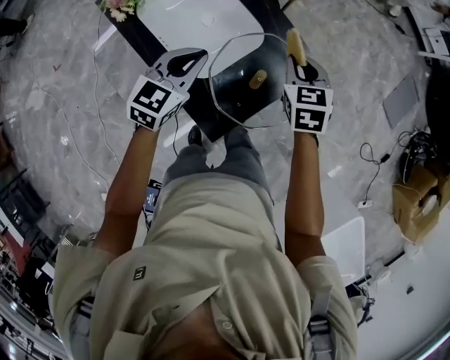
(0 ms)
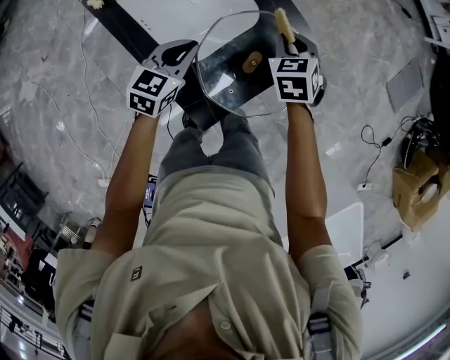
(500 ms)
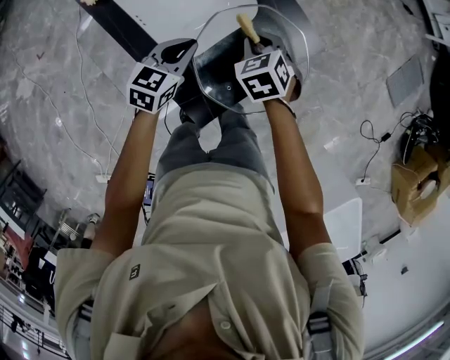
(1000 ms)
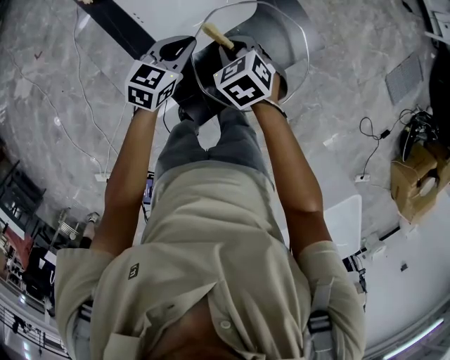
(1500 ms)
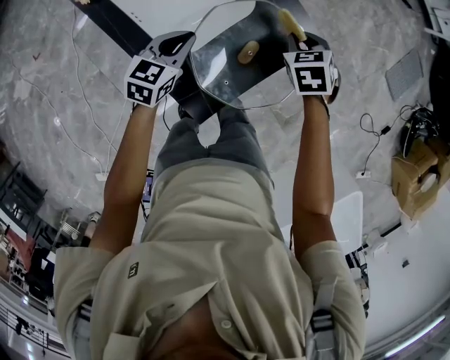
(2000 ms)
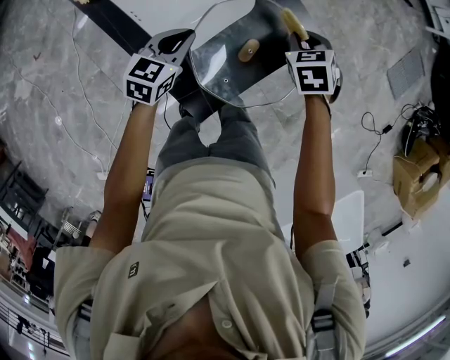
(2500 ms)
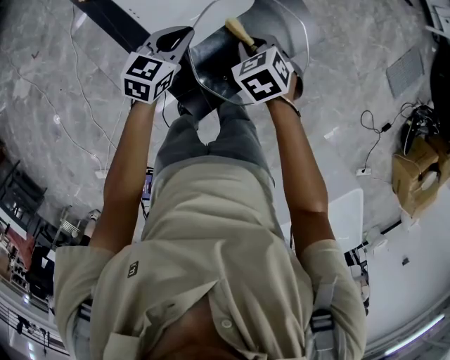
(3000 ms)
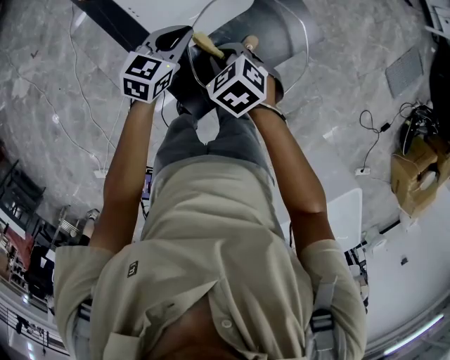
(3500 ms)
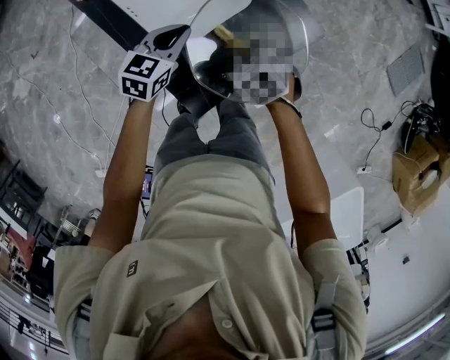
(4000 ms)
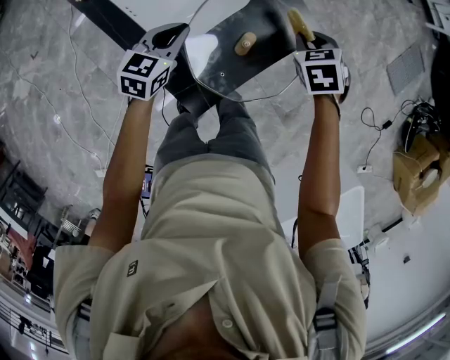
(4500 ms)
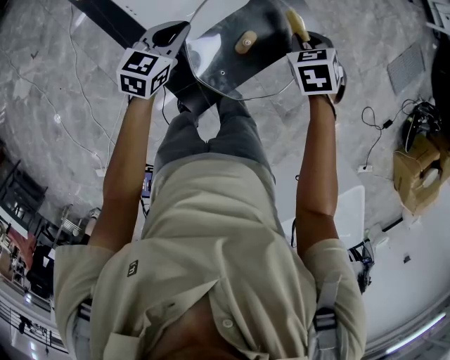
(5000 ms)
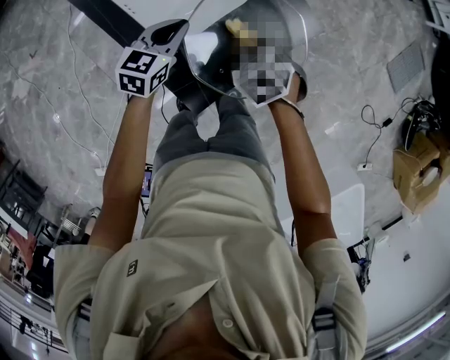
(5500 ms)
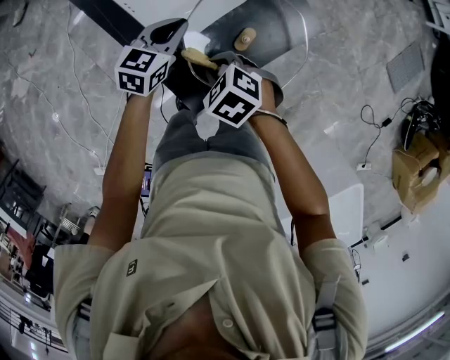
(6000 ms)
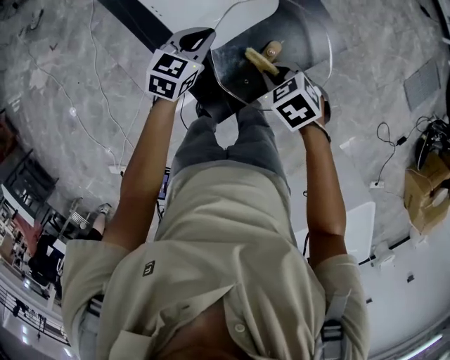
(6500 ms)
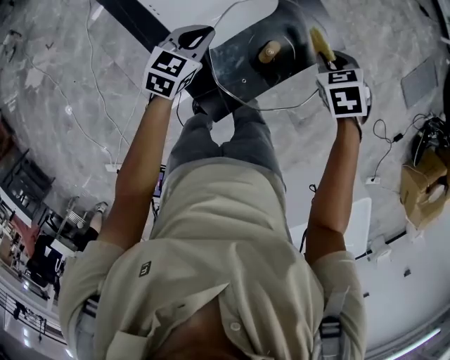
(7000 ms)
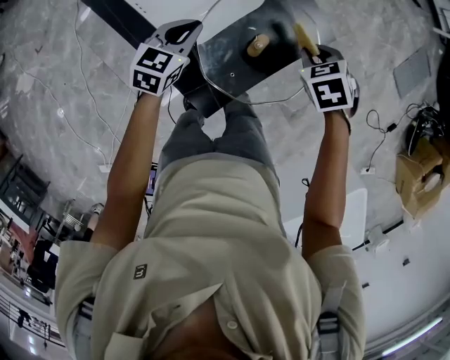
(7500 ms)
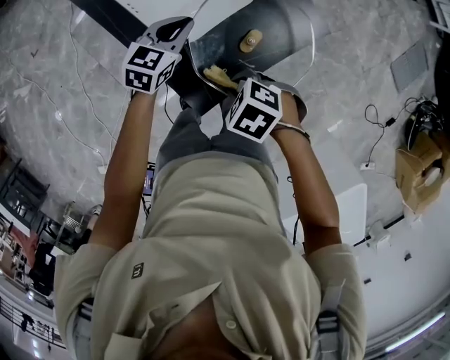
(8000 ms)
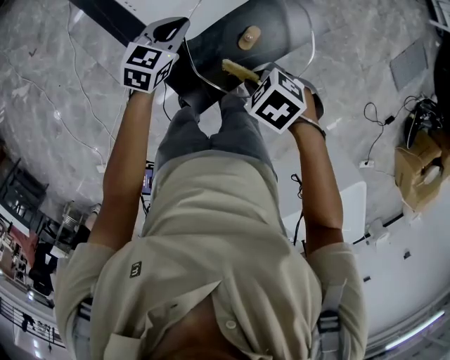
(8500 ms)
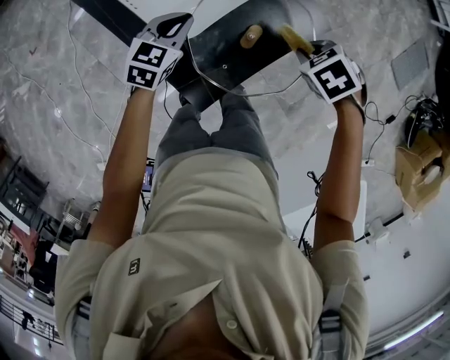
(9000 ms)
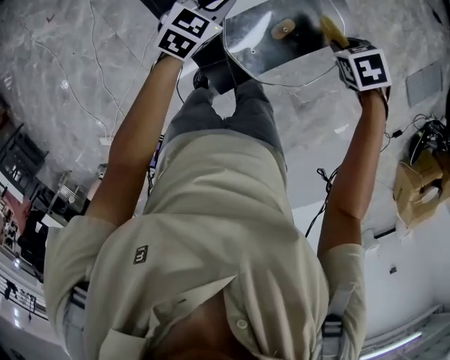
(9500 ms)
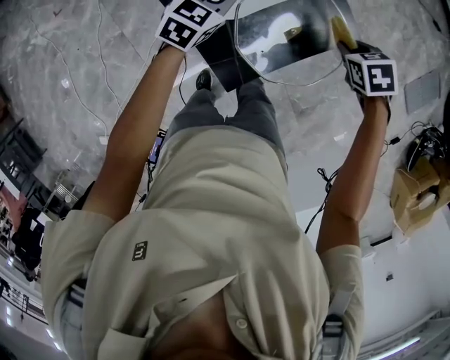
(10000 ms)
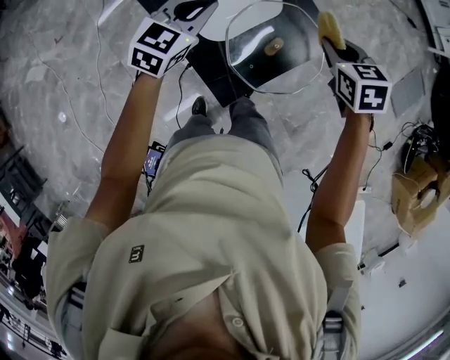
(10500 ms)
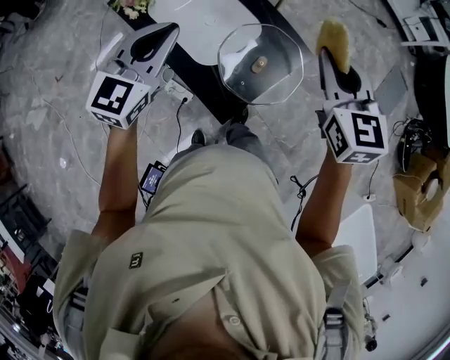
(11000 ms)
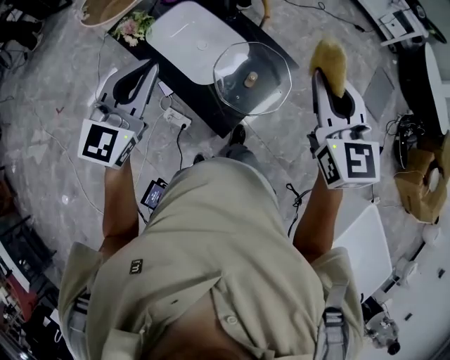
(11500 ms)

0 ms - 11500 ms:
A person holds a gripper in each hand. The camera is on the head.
0 ms - 2000 ms: Both grippers travel together downward, some 15 cm. The right gripper moves about 10 cm to the left and comes back, and swivels about 20 degrees.
2000 ms - 4000 ms: The right gripper ends up about 15 cm from where it was, and turns by roughly 20 degrees.
6000 ms - 7500 ms: The right gripper moves approximately 20 cm, and swivels approximately 30 degrees.
9500 ms - 11500 ms: The two grippers go about 40 cm upward. The right gripper tilts its fingers some 70 degrees upward. Meanwhile the left gripper points its fingers about 40 degrees further upward.

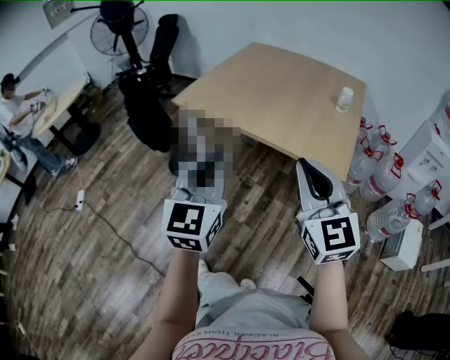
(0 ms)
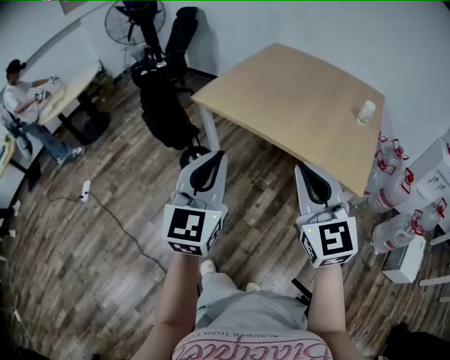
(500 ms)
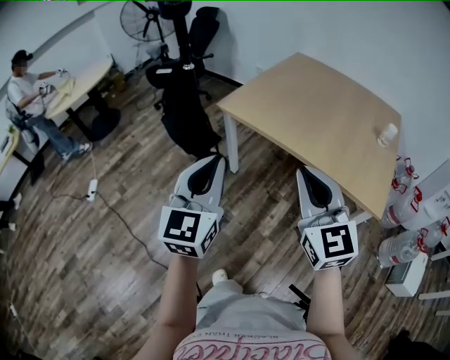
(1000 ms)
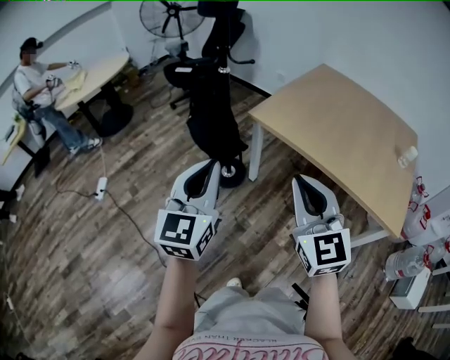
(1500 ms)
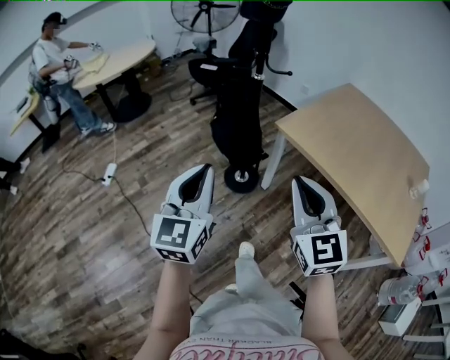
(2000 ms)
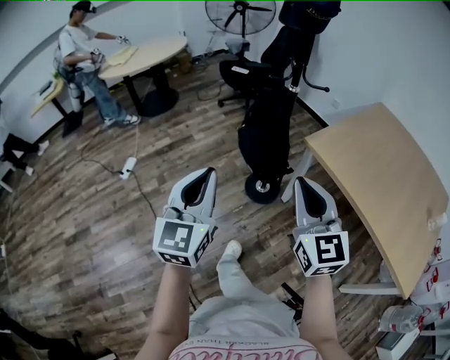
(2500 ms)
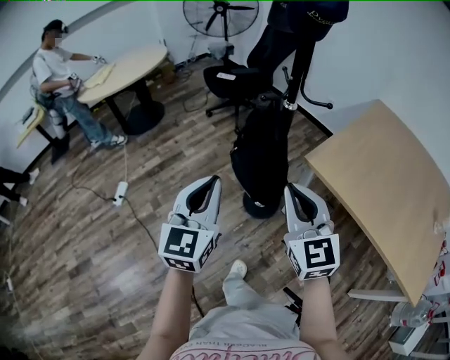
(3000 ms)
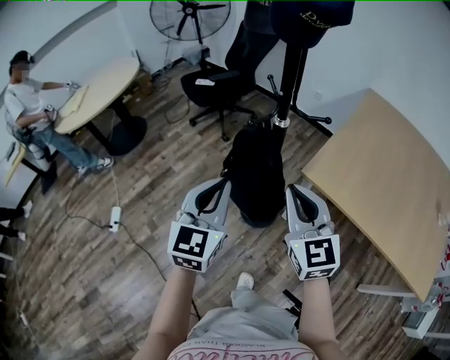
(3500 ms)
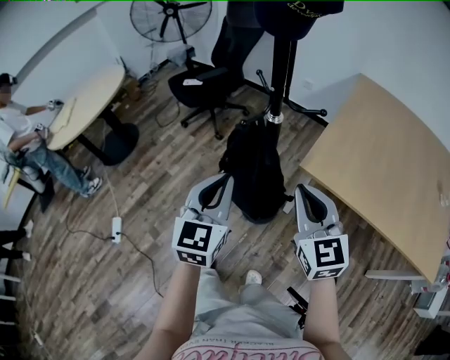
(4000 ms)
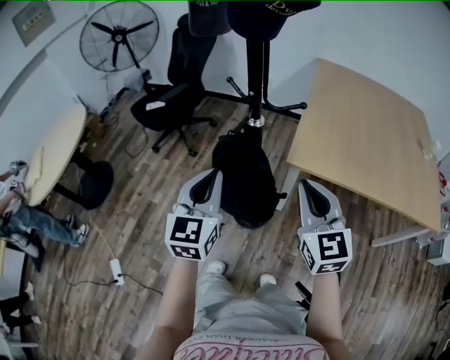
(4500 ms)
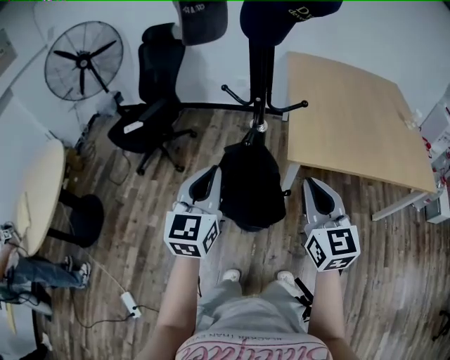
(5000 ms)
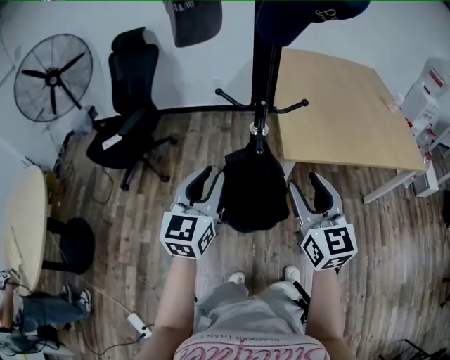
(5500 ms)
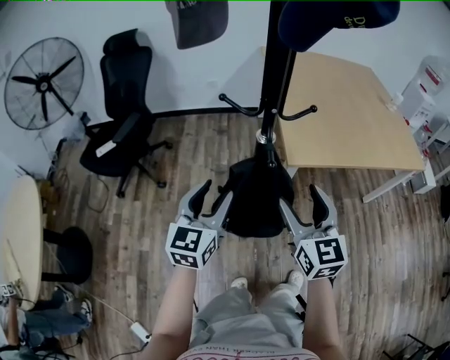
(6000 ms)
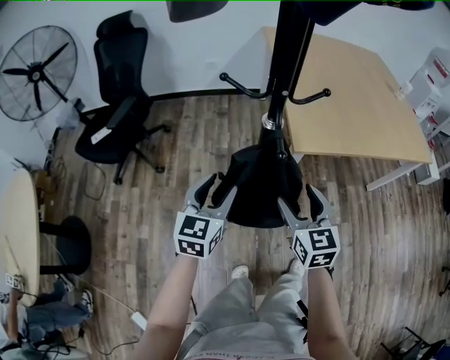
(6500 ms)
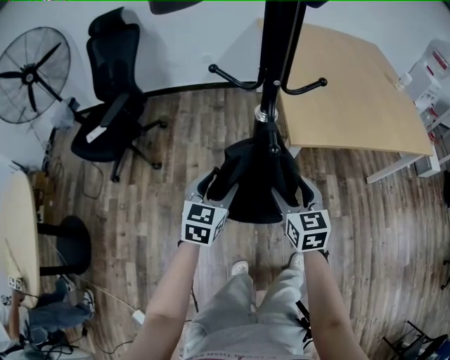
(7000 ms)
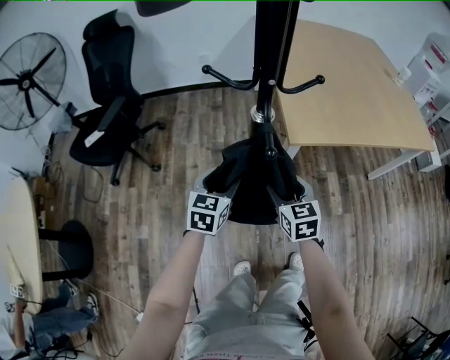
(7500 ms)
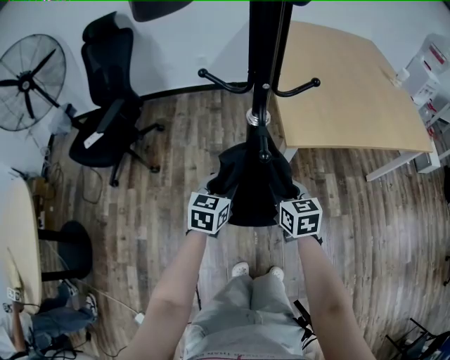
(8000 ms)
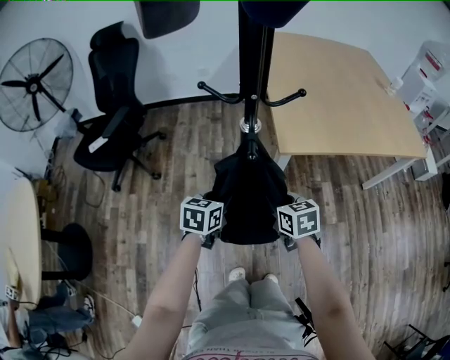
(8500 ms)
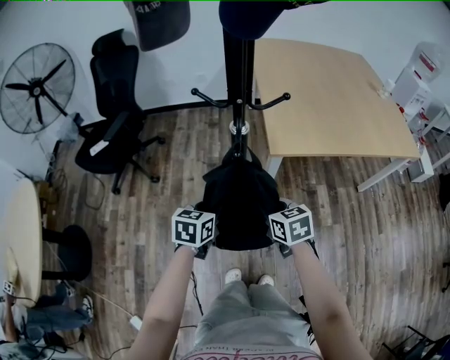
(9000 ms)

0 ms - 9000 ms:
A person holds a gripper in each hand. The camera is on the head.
0 ms - 2000 ms: The two grippers travel together, to the left and forward, roughly 40 cm.
2000 ms - 4500 ms: The right gripper ends up roughly 30 cm from where it was, and turns by about 30 degrees; the left gripper ends up roughly 40 cm from where it was, and changes its angle by roughly 30 degrees.
4500 ms - 7000 ms: Both grippers travel together downward, about 20 cm. The right gripper turns by approximately 30 degrees, and opens up, while the left gripper turns by about 40 degrees, and opens.
7000 ms - 9000 ms: The right gripper turns by roughly 20 degrees, and closes its fingers, while the left gripper ends up about 5 cm from where it was, and closes.

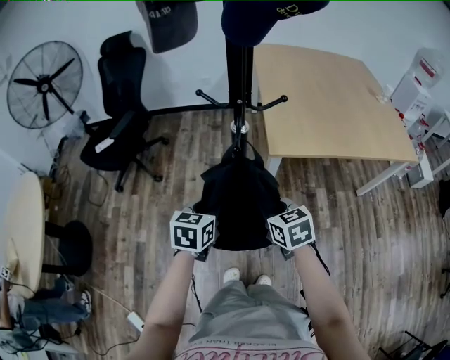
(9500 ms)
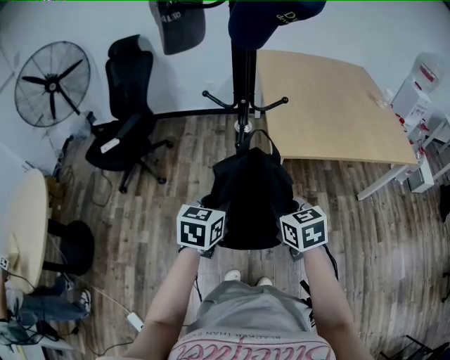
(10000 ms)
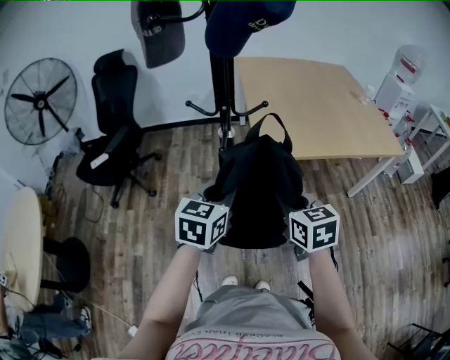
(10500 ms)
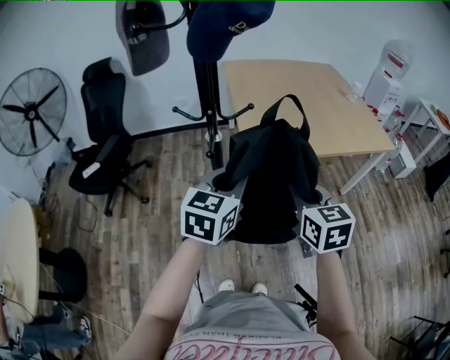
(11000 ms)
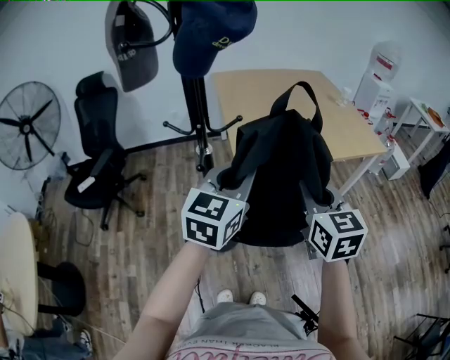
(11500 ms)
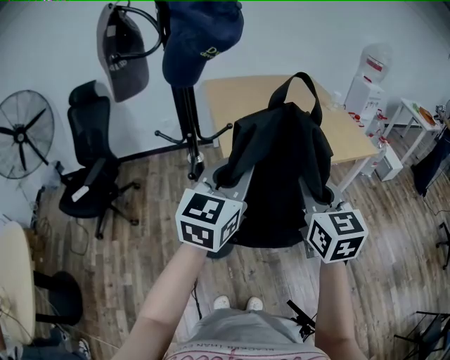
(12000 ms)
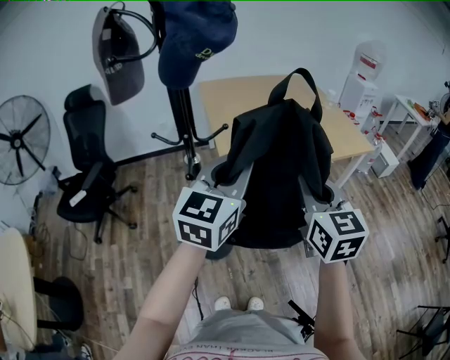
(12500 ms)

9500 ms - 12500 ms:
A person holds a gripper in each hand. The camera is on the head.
9500 ms - 11000 ms: The two grippers go some 20 cm upward and to the right. The left gripper changes its angle by about 30 degrees. Meanwhile the right gripper changes its angle by roughly 30 degrees.
11000 ms - 12500 ms: The grippers both shift upward and to the right by about 10 cm.

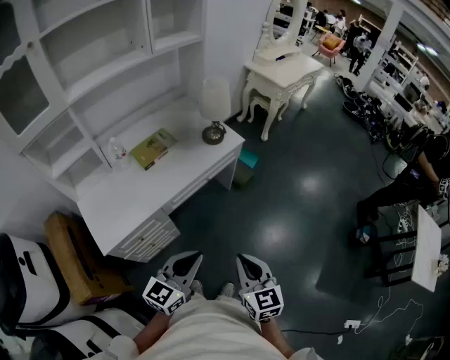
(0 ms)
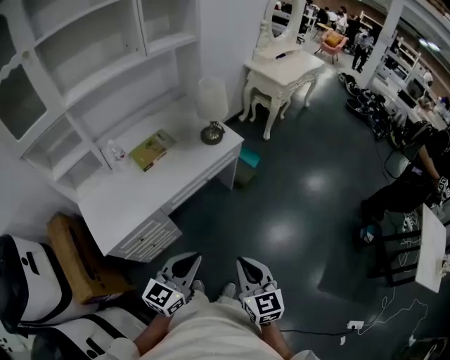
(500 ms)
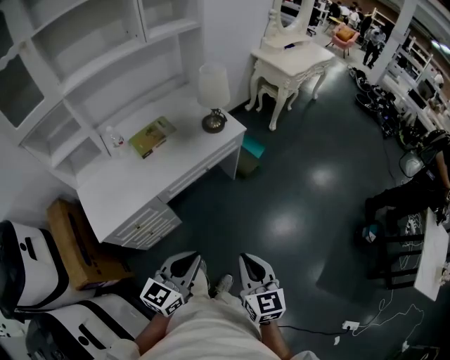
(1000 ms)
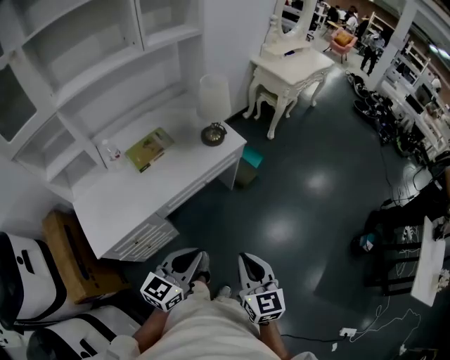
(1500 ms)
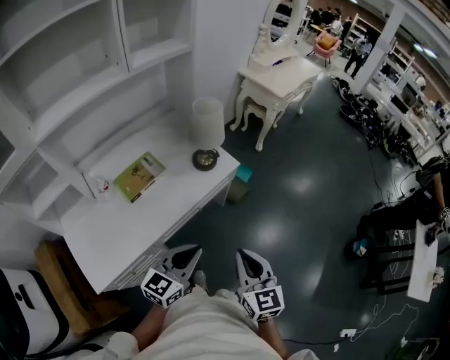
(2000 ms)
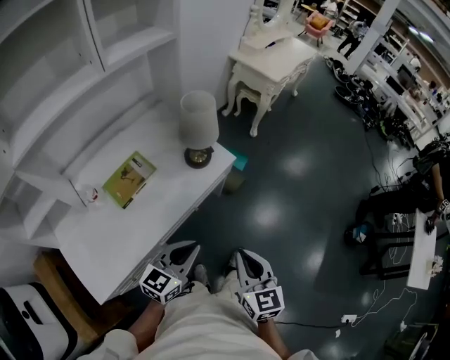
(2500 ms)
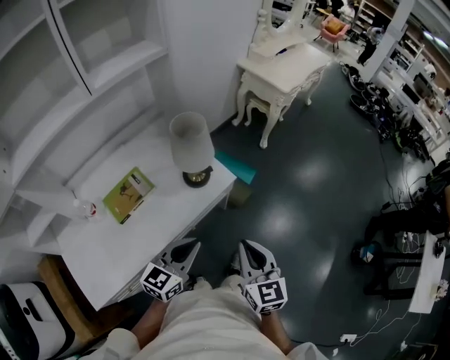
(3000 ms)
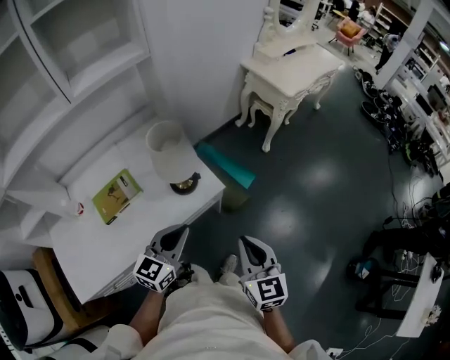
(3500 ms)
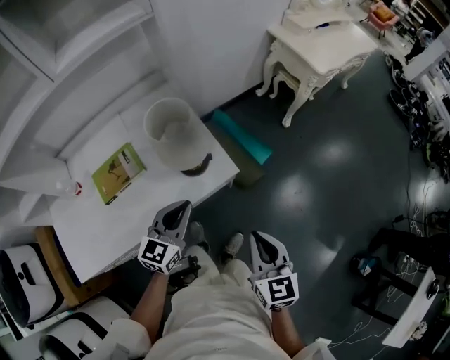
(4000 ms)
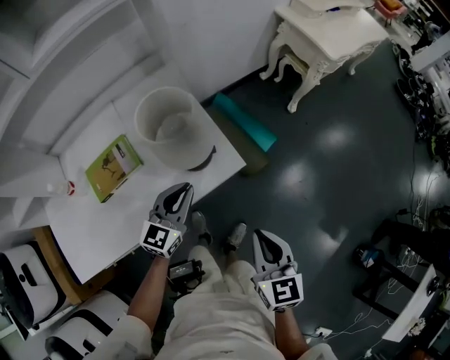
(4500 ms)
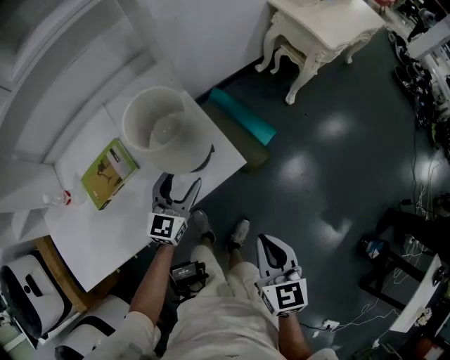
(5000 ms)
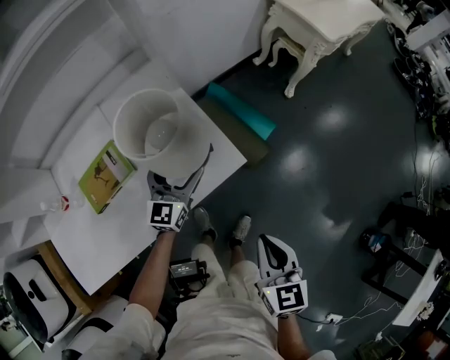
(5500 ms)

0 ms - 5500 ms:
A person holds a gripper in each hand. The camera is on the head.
0 ms - 2000 ms: The grippers both shift forward by some 20 cm.
2000 ms - 3500 ms: The left gripper moves forward, roughly 25 cm, while the right gripper moves forward and to the right, roughly 30 cm.
3500 ms - 5500 ms: The left gripper heads forward and downward, covering about 30 cm, and opens its fingers, while the right gripper is displaced downward and forward by approximately 15 cm.
